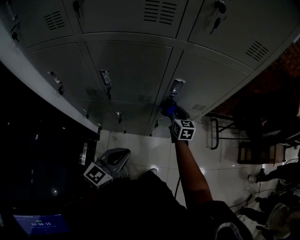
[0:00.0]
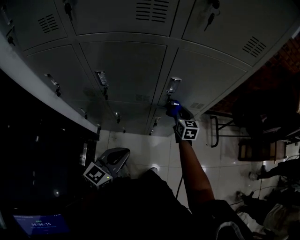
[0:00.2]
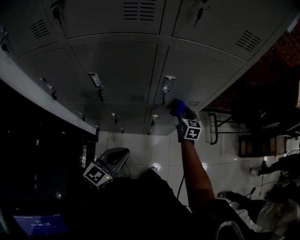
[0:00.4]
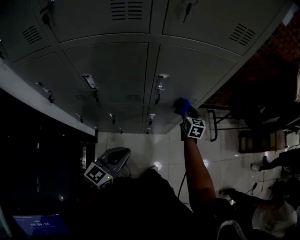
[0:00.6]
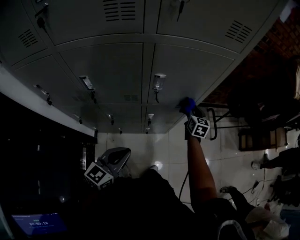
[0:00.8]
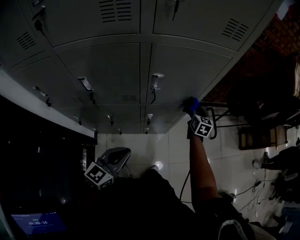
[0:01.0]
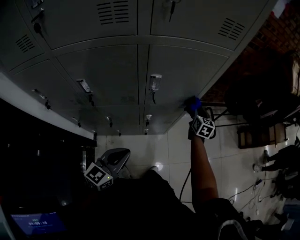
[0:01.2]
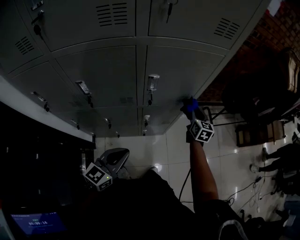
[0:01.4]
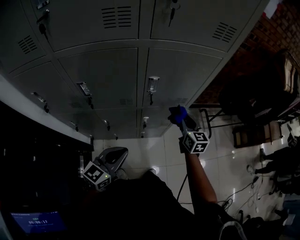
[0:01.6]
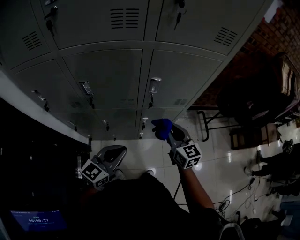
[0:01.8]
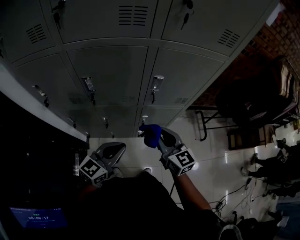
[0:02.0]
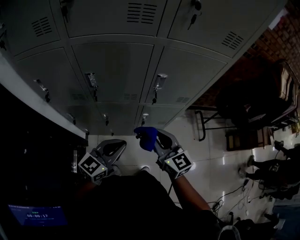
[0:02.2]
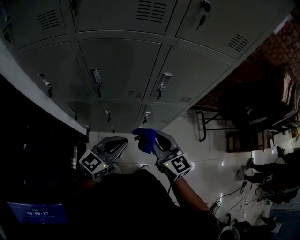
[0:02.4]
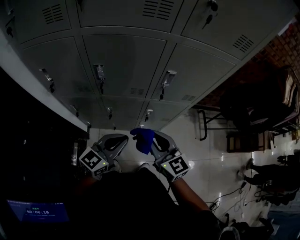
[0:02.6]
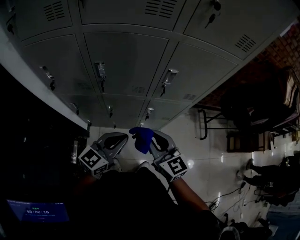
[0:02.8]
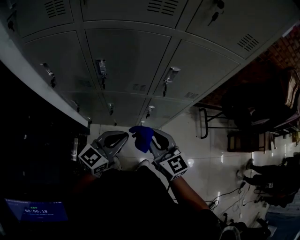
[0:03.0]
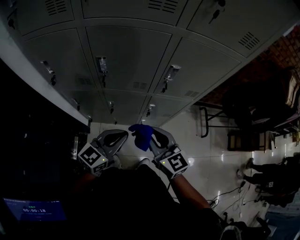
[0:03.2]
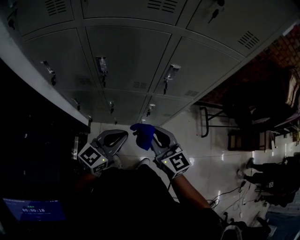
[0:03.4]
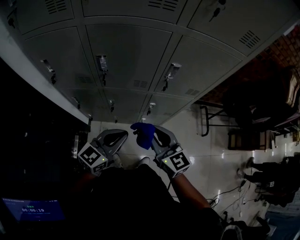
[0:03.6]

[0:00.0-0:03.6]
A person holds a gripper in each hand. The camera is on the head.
0:00.0 to 0:01.8: The right gripper travels backward and upward by approximately 15 cm, and travels to the right and back again, some 20 cm each way.
0:01.8 to 0:03.6: The right gripper travels to the left and backward by about 15 cm.

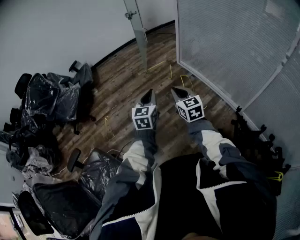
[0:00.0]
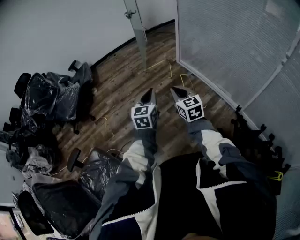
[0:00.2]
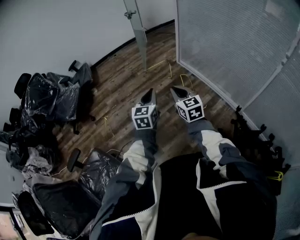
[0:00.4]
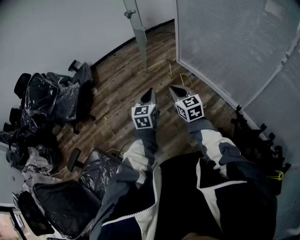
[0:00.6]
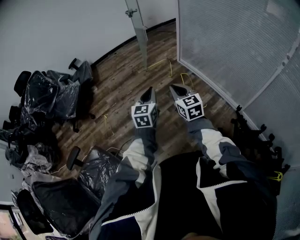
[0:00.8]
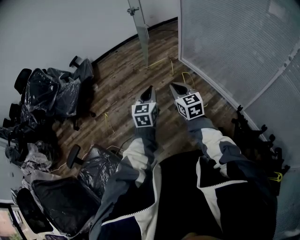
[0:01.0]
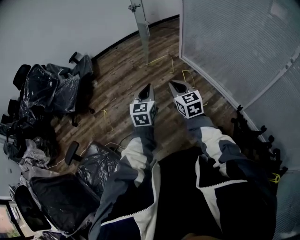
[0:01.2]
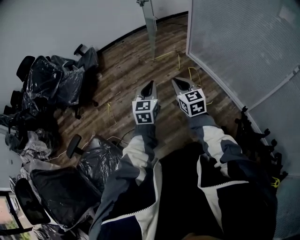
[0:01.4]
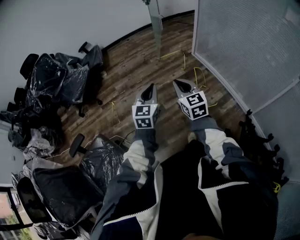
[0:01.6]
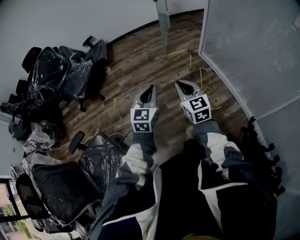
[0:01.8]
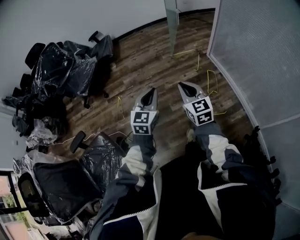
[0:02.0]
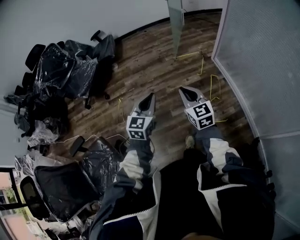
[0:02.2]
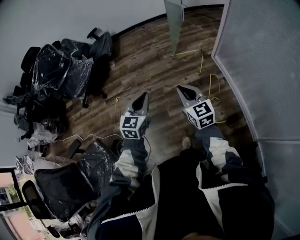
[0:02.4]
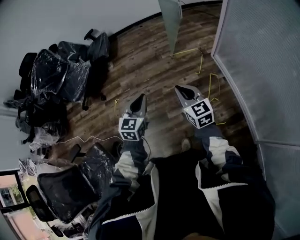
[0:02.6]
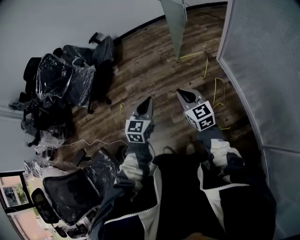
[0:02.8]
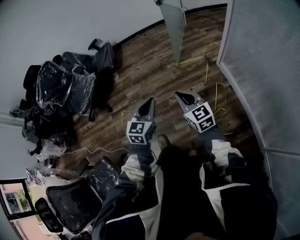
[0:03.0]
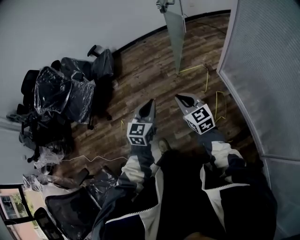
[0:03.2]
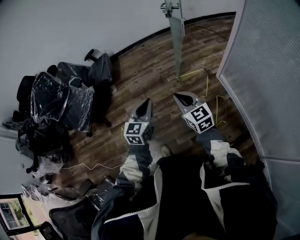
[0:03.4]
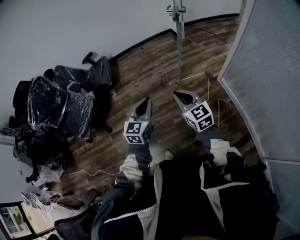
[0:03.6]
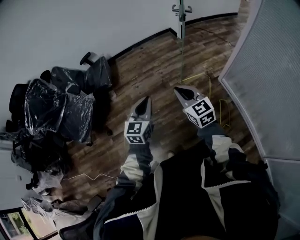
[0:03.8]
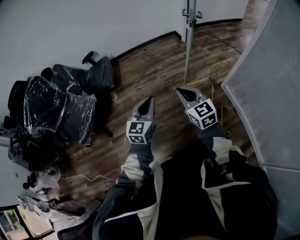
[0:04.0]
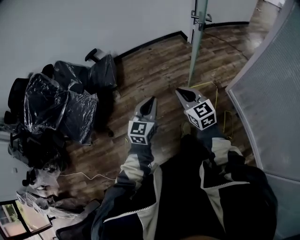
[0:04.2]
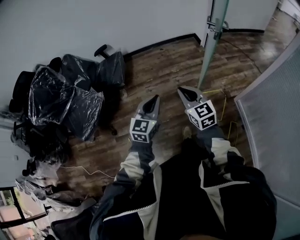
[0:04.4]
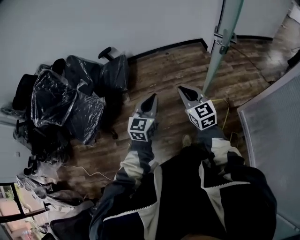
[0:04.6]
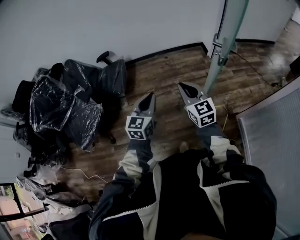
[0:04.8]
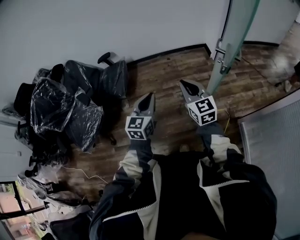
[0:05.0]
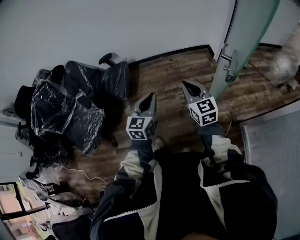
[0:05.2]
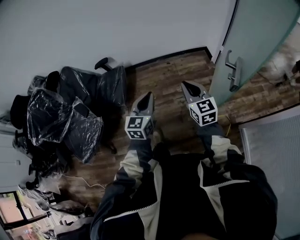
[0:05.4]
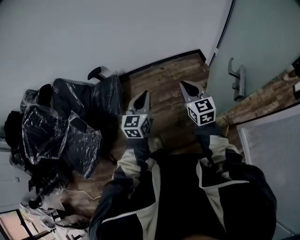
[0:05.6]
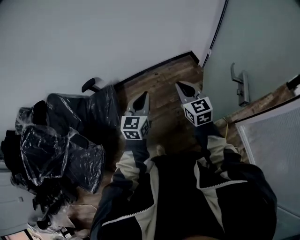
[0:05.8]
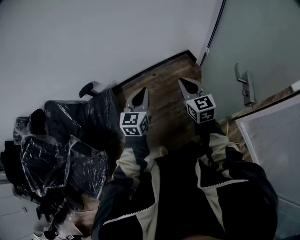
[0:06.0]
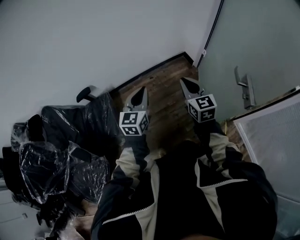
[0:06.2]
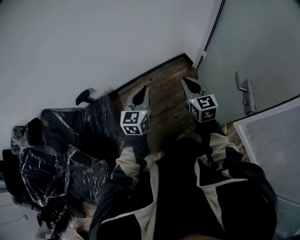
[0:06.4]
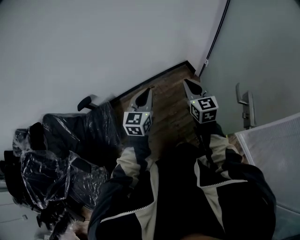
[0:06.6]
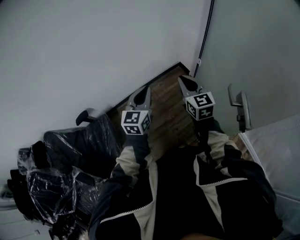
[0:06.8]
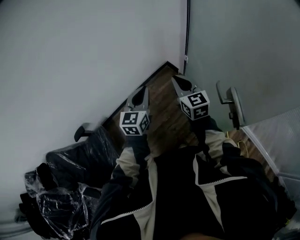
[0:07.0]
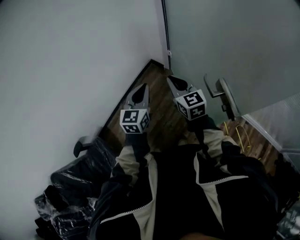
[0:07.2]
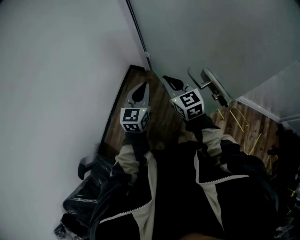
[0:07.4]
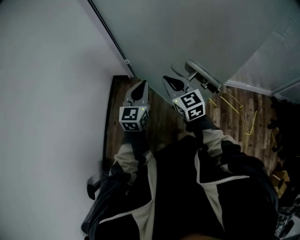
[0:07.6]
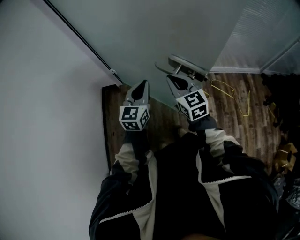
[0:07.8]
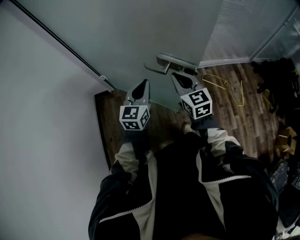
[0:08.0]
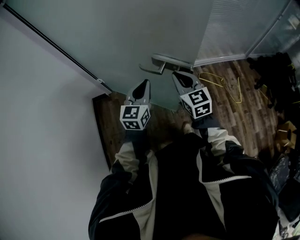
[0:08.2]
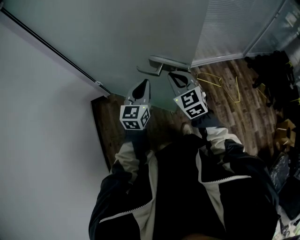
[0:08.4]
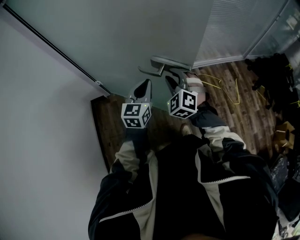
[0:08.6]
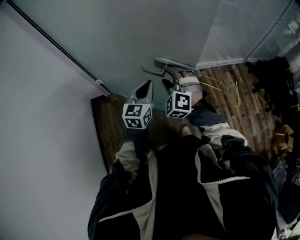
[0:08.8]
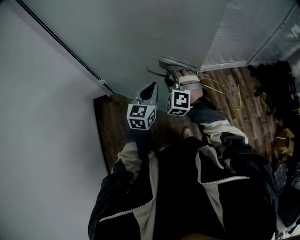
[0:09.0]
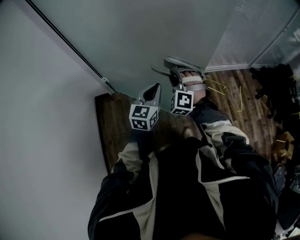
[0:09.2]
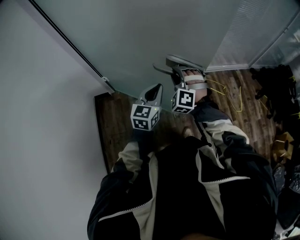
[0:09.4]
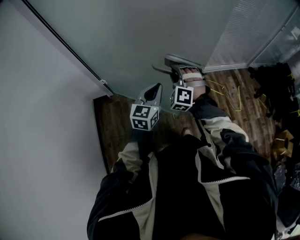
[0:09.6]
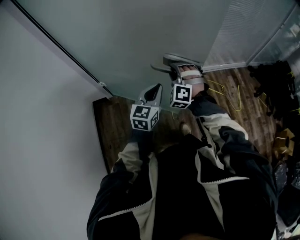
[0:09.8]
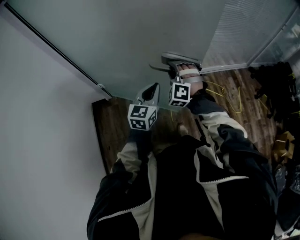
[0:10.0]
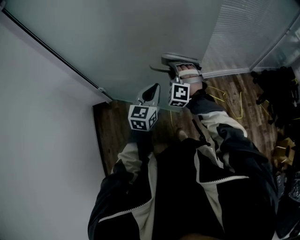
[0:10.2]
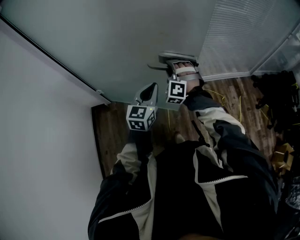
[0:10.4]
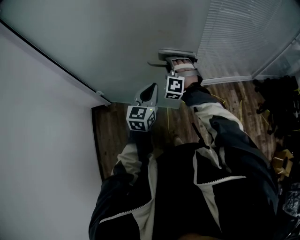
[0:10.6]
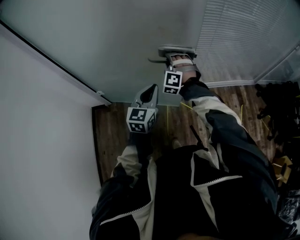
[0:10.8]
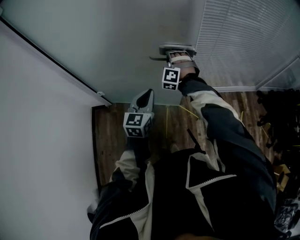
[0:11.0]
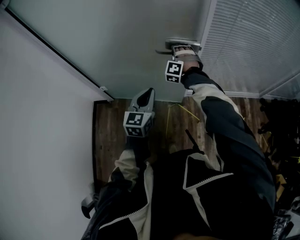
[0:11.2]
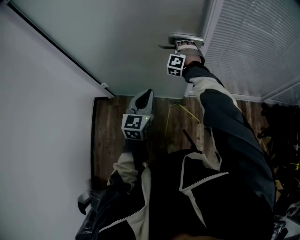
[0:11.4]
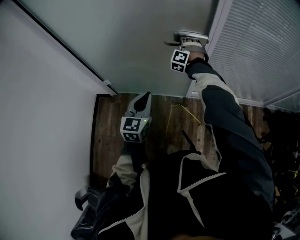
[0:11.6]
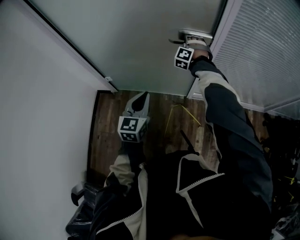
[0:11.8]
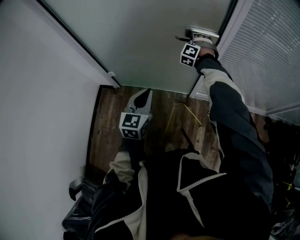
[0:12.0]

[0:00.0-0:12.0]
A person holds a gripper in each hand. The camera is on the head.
0:00.0 to 0:01.6: The grippers both shift to the left by about 5 cm.
0:01.6 to 0:03.0: The two grippers go some 30 cm forward. The right gripper changes its angle by about 20 degrees.
0:03.0 to 0:04.4: The two grippers travel together, forward and to the left, about 40 cm.
0:04.4 to 0:06.0: The two grippers travel together, forward, some 50 cm.
0:06.0 to 0:07.6: The right gripper moves roughly 25 cm, and turns by some 50 degrees; the left gripper ends up some 40 cm from where it was, and changes its angle by roughly 60 degrees.
0:07.6 to 0:09.0: The right gripper moves some 10 cm, changes its angle by approximately 70 degrees, and opens up, while the left gripper ends up some 15 cm from where it was, and changes its angle by some 30 degrees.
0:09.0 to 0:10.4: The two grippers go some 15 cm forward. The right gripper closes its fingers.
0:10.4 to 0:12.0: The right gripper heads forward, covering some 30 cm, while the left gripper ends up roughly 5 cm from where it was, and rotates approximately 20 degrees.

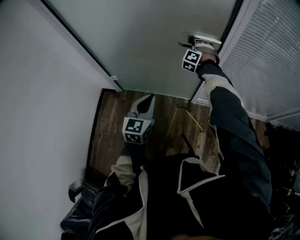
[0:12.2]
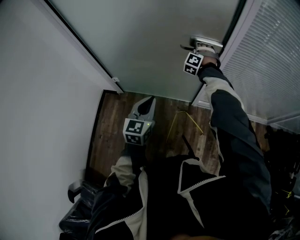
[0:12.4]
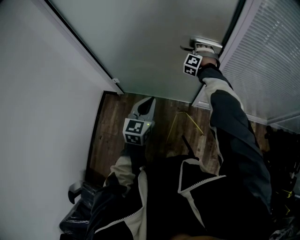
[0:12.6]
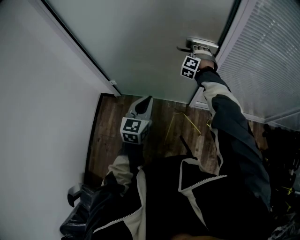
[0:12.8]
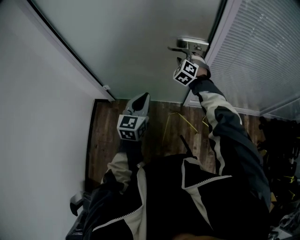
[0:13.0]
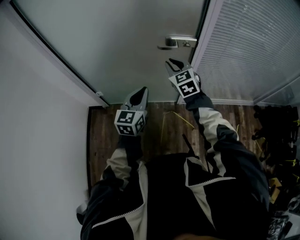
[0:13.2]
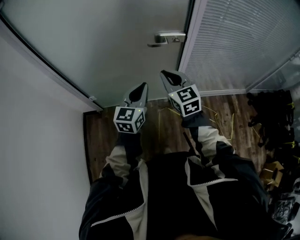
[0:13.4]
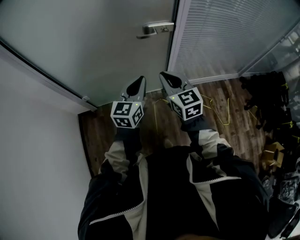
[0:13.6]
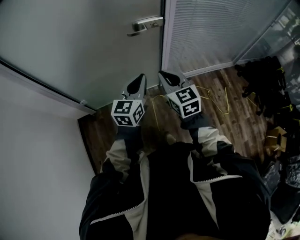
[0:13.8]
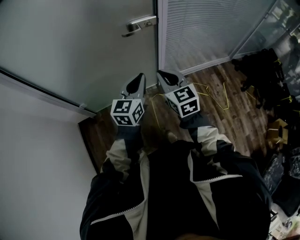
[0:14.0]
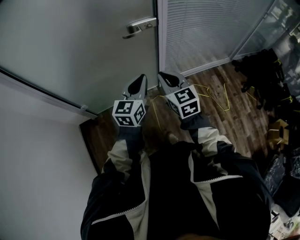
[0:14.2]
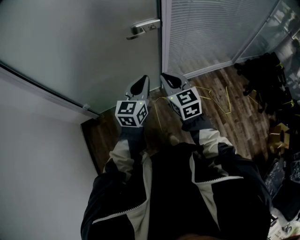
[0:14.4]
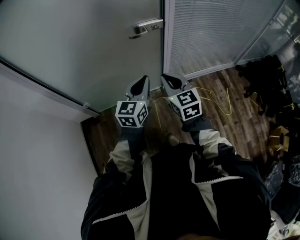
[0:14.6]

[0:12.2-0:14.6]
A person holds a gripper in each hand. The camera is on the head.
0:12.2 to 0:13.4: The right gripper travels backward and upward by some 30 cm, rolls clockwise, seen from behind, by about 70 degrees, and closes its fingers; the left gripper heads upward, covering roughly 5 cm.
0:13.4 to 0:14.6: The right gripper is displaced backward by roughly 5 cm.

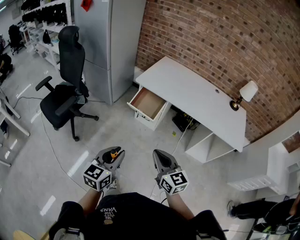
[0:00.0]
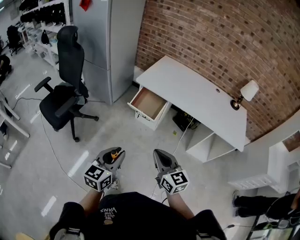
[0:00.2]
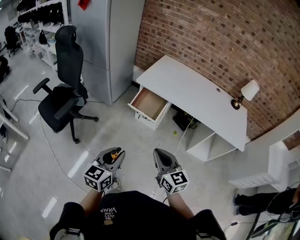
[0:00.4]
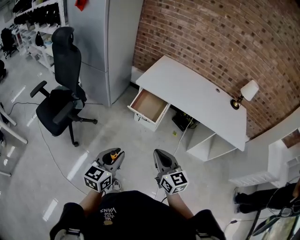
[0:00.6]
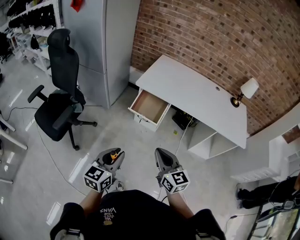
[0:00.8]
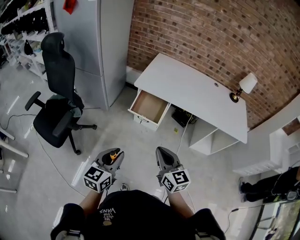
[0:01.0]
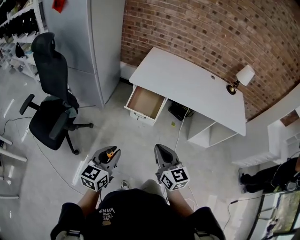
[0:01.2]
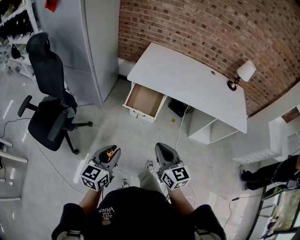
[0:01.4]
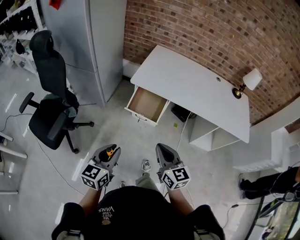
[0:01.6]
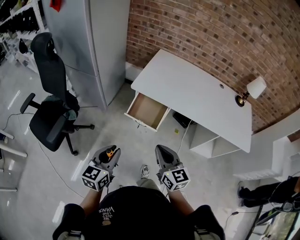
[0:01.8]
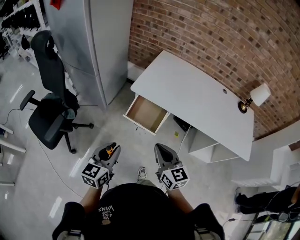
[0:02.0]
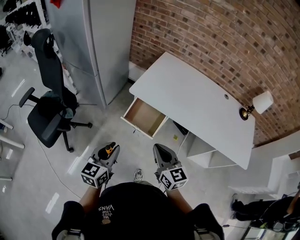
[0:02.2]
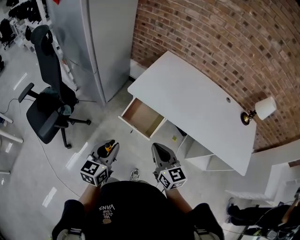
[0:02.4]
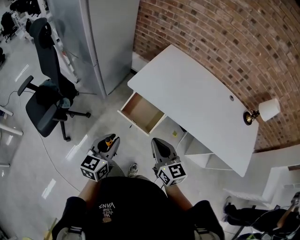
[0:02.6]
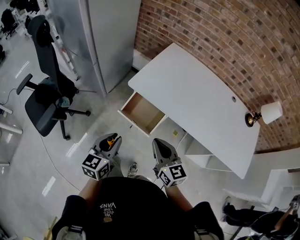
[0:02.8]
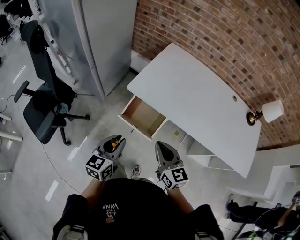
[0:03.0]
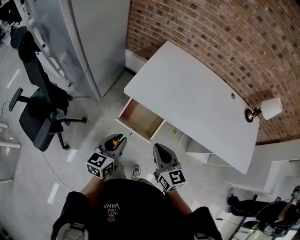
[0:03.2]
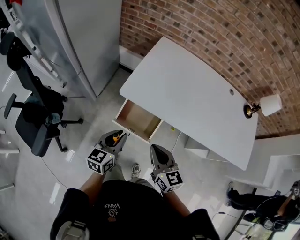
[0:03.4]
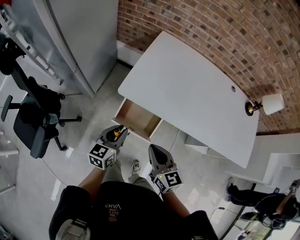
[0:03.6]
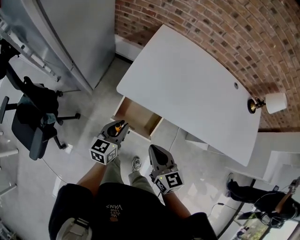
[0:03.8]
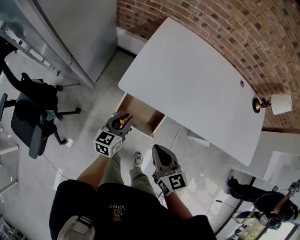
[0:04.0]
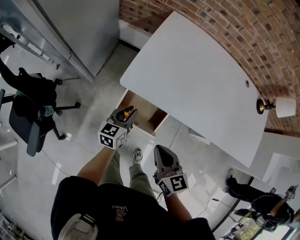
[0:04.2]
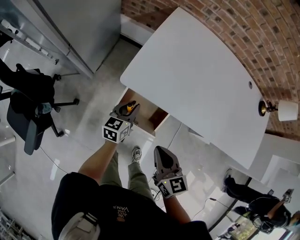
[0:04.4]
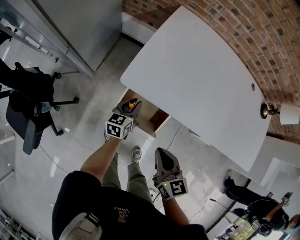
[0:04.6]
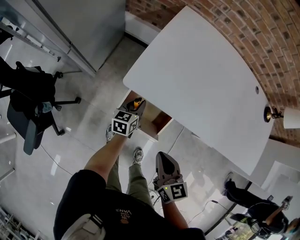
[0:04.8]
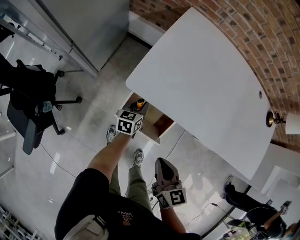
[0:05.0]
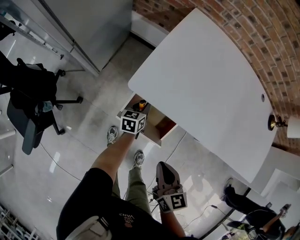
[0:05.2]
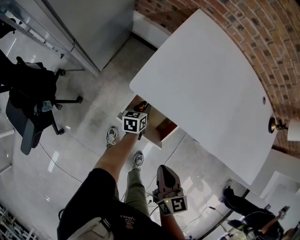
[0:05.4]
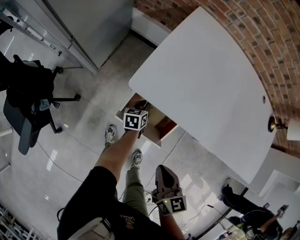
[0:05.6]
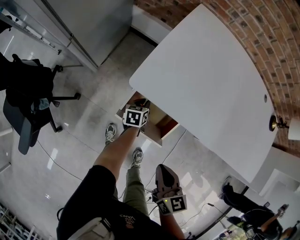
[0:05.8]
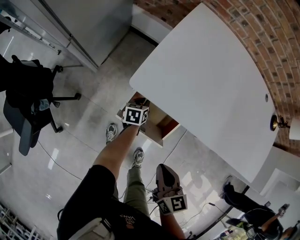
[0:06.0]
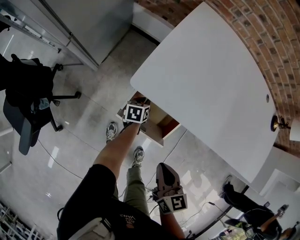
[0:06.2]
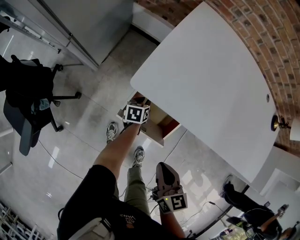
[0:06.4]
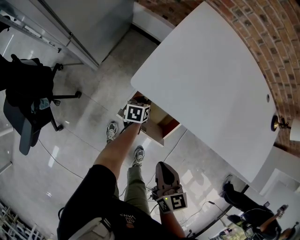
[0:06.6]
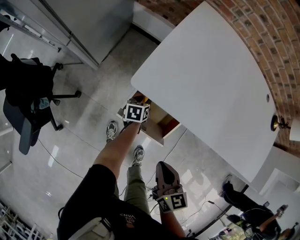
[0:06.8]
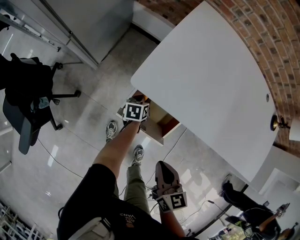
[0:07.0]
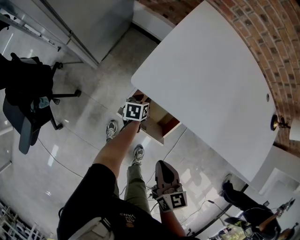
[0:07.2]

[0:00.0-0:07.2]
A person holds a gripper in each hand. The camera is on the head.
0:00.0 to 0:01.4: The grippers both shift forward and to the left by approximately 20 cm.
0:01.4 to 0:02.8: The left gripper is displaced forward and to the right by roughly 25 cm, while the right gripper is displaced forward by approximately 25 cm.
0:02.8 to 0:04.4: The right gripper heads downward and forward, covering some 15 cm, and rotates approximately 20 degrees, while the left gripper moves forward and downward, approximately 35 cm.
0:04.4 to 0:05.8: The right gripper travels downward by about 5 cm, while the left gripper goes some 20 cm downward, and changes its angle by roughly 20 degrees.
0:05.8 to 0:07.2: The grippers move only a little.
